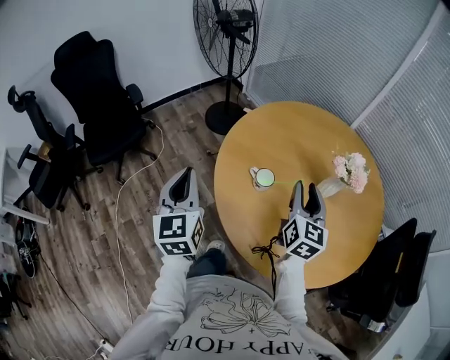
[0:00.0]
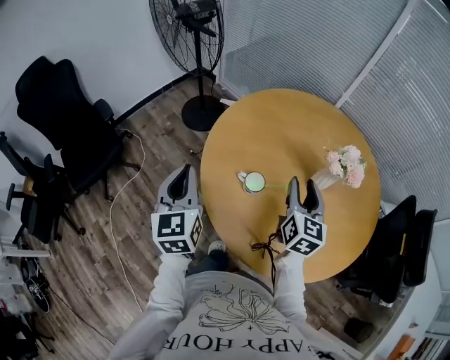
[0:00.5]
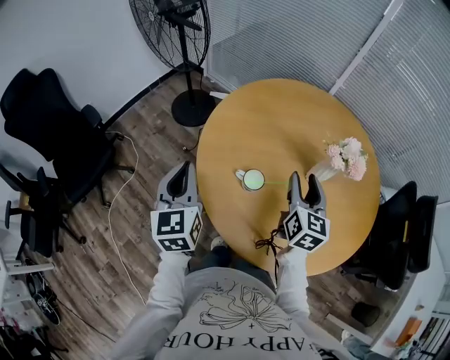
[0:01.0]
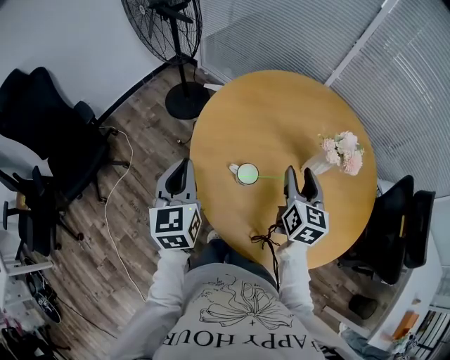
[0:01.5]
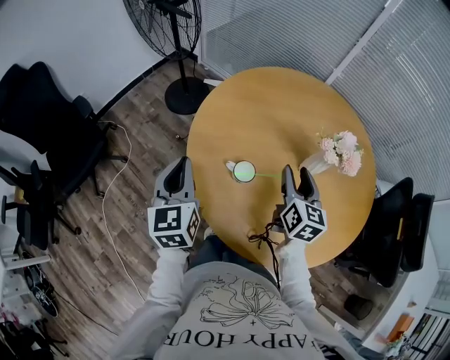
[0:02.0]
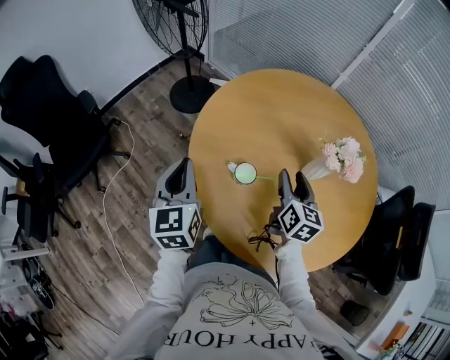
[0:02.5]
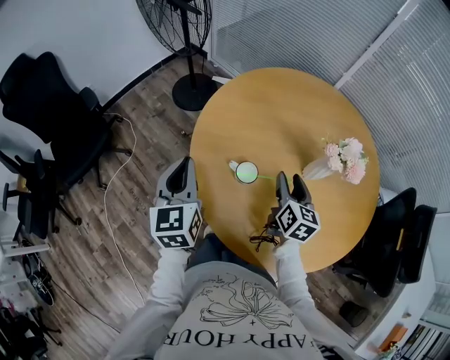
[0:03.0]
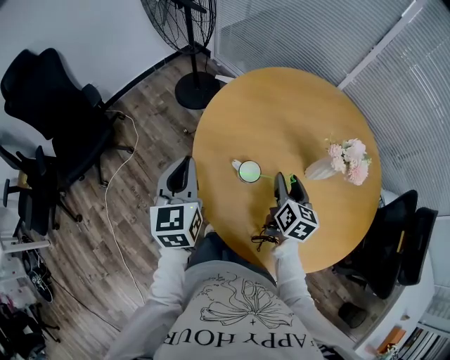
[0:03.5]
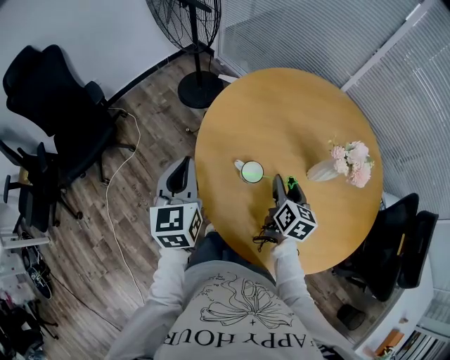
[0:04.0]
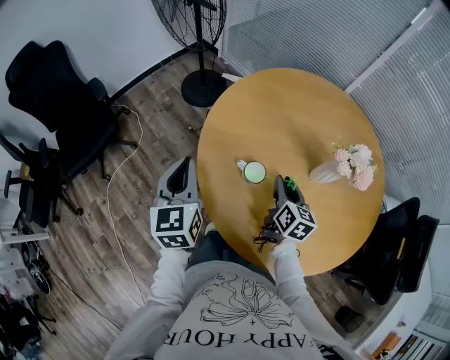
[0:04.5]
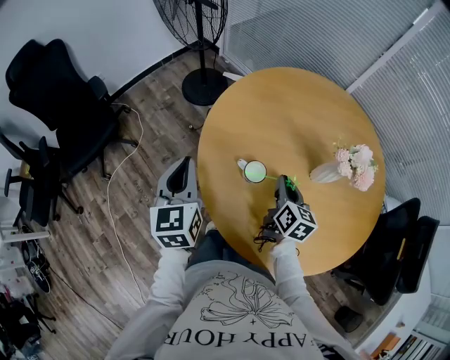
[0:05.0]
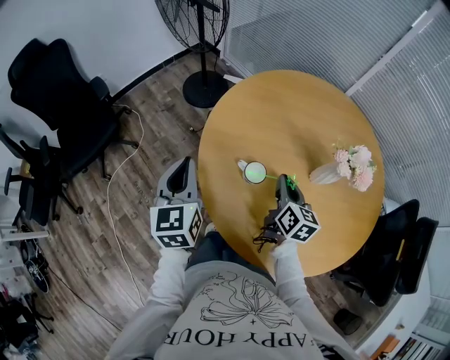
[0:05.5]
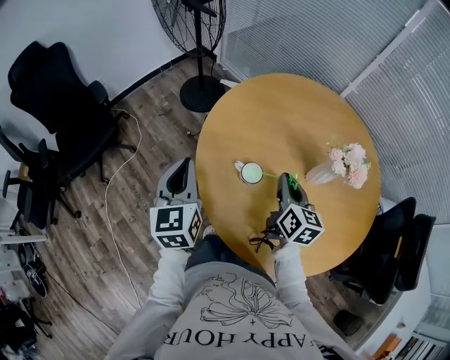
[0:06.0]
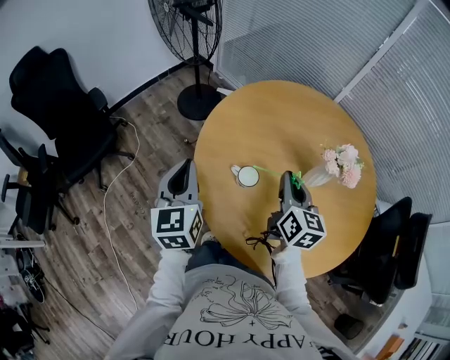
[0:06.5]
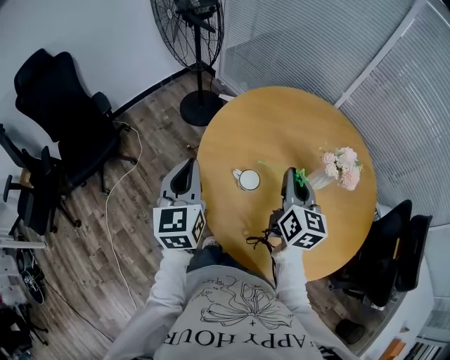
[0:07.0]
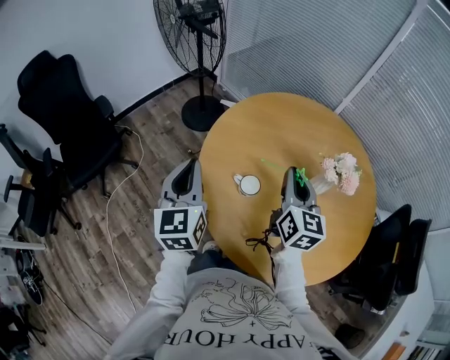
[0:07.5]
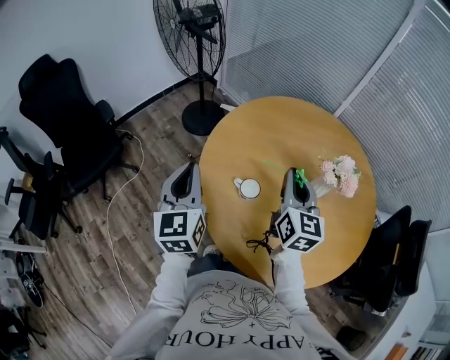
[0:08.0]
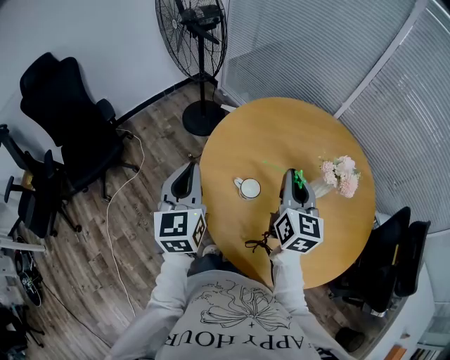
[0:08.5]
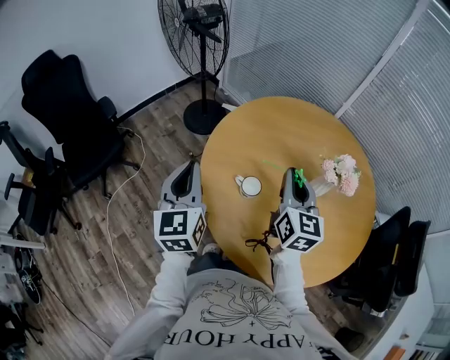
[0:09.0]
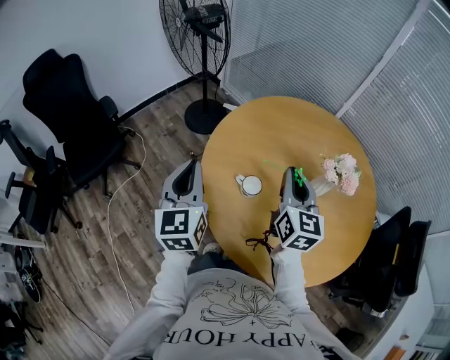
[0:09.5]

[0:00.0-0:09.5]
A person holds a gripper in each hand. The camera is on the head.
0:00.0 to 0:02.0: The right gripper heads forward and downward, covering approximately 10 cm, while the left gripper travels forward by about 15 cm.
0:02.0 to 0:04.0: The right gripper travels downward by approximately 10 cm.
0:04.0 to 0:05.5: The right gripper closes.
0:05.5 to 0:07.5: The right gripper shifts approximately 15 cm upward, and turns by about 20 degrees. The left gripper moves upward, approximately 5 cm.
0:07.5 to 0:09.5: The grippers make only small movements.

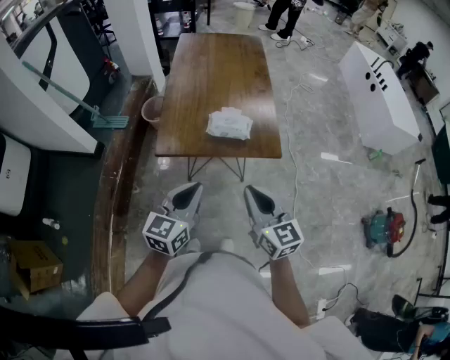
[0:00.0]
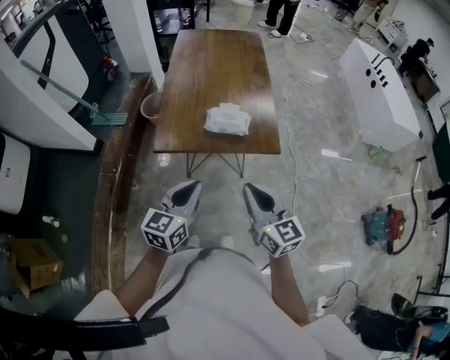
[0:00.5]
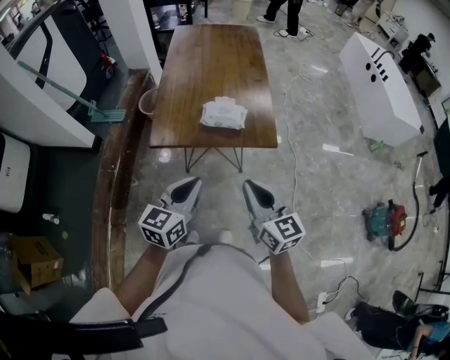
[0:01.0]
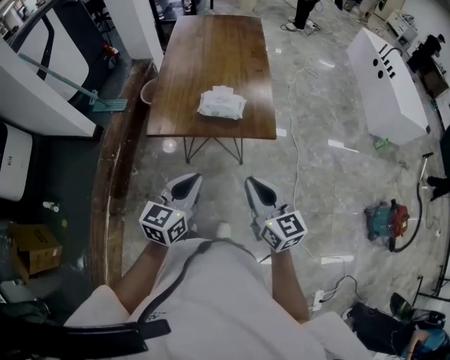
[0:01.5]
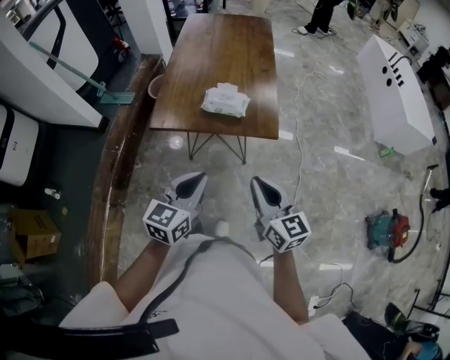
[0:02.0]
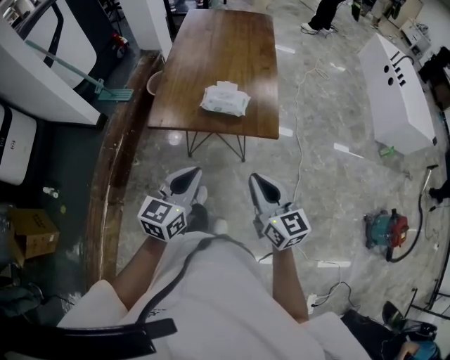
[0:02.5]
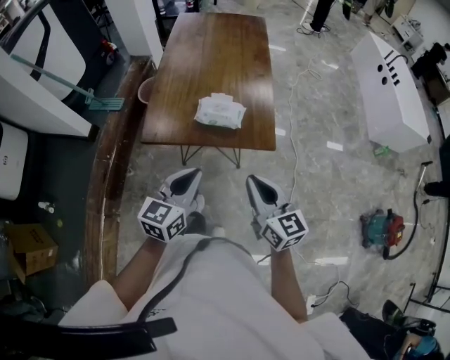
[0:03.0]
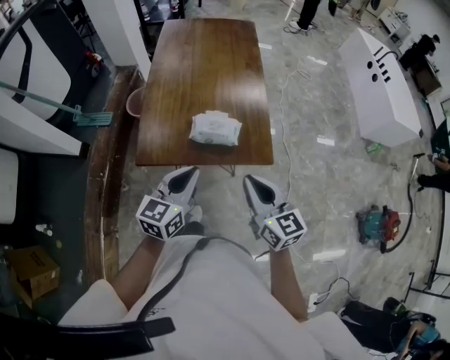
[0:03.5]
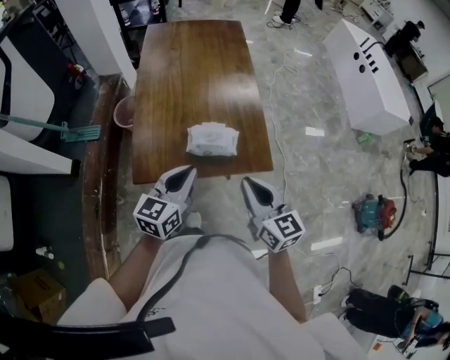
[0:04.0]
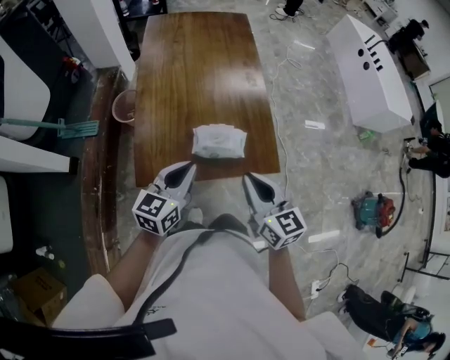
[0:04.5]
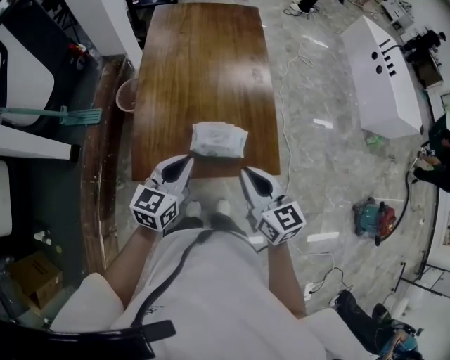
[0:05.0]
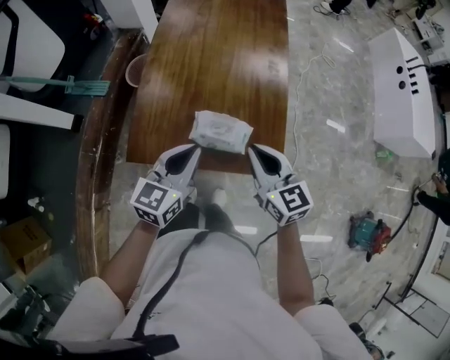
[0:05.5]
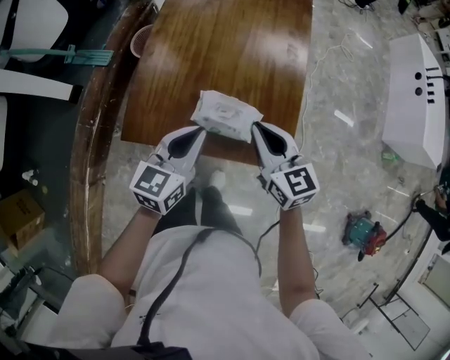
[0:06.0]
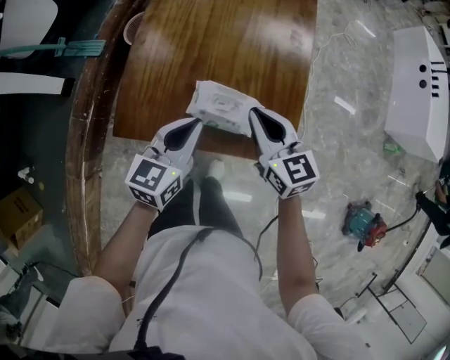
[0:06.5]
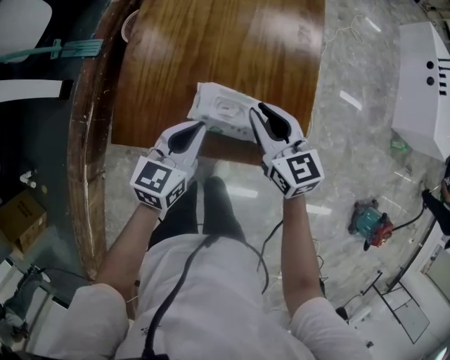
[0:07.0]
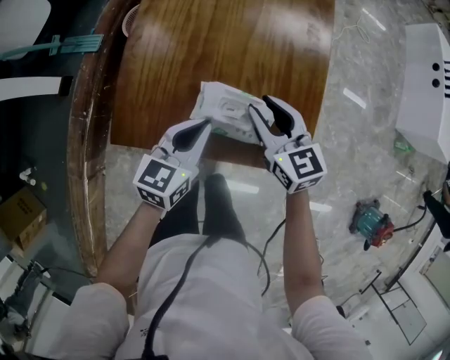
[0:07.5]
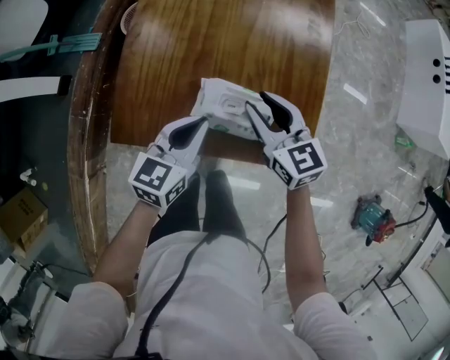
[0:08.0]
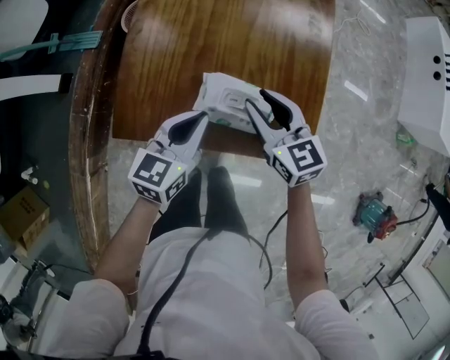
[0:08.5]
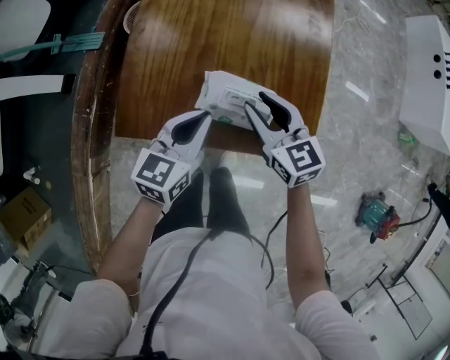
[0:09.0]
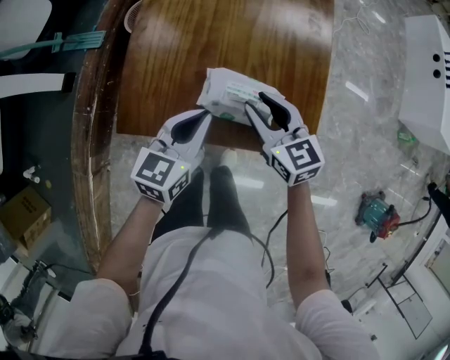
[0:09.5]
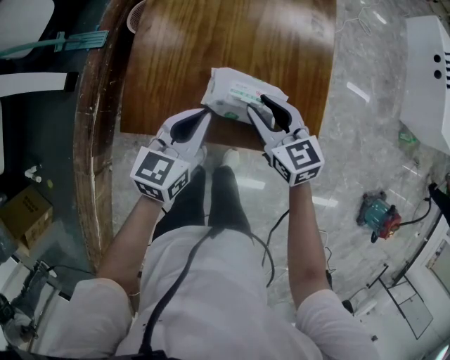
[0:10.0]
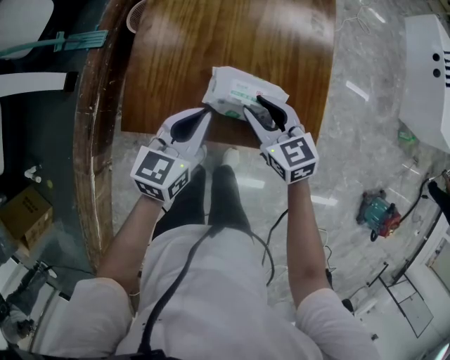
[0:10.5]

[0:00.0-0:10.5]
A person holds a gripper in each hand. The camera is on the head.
0:00.0 to 0:02.0: Both grippers move to the right, about 10 cm.
0:02.0 to 0:04.0: Both grippers move forward, roughly 25 cm.
0:04.0 to 0:06.5: The left gripper goes some 15 cm forward and downward; the right gripper heads forward and downward, covering roughly 25 cm, and turns by about 20 degrees.
0:06.5 to 0:08.5: The two grippers go roughly 5 cm downward. The right gripper opens its fingers.
0:08.5 to 0:10.5: The grippers move only a little.

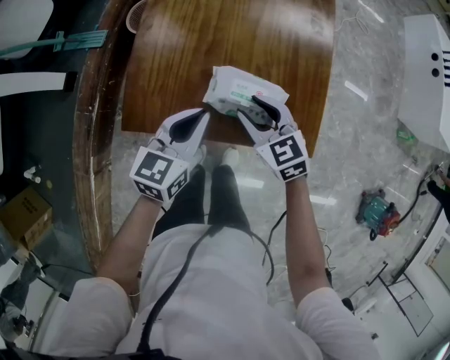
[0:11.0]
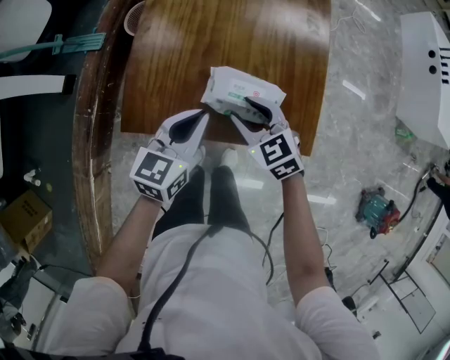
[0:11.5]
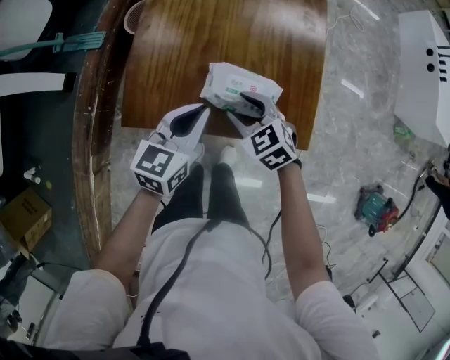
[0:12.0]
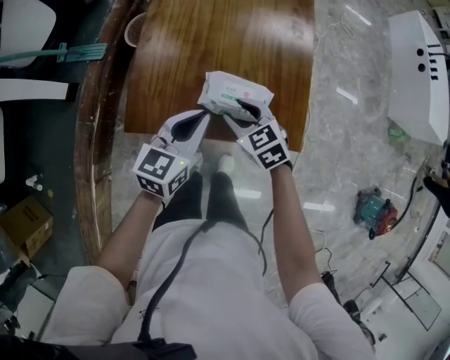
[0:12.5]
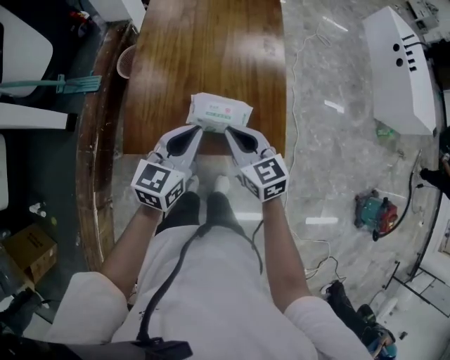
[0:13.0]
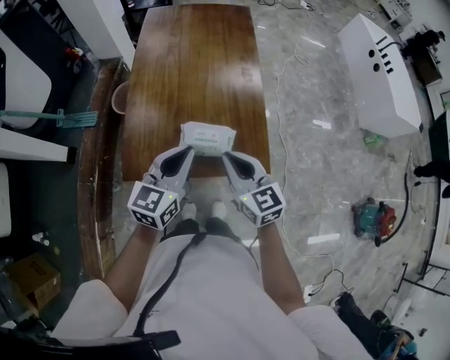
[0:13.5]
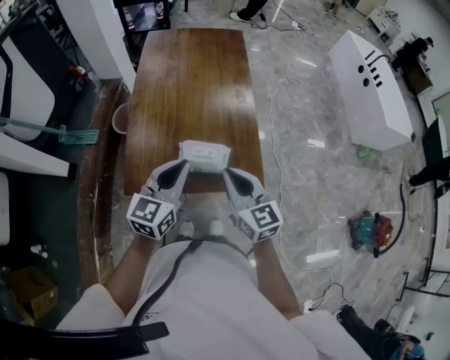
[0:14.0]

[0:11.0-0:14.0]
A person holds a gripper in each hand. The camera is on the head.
0:12.5 to 0:14.0: The grippers both shift upward by some 15 cm. The right gripper tilts its fingers approximately 30 degrees upward, and closes up.

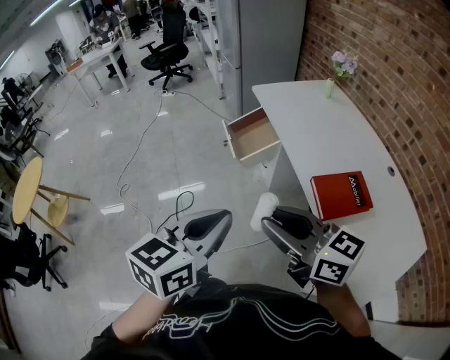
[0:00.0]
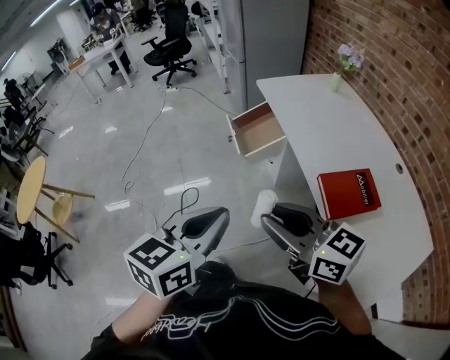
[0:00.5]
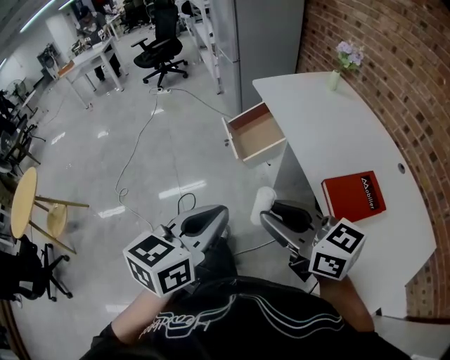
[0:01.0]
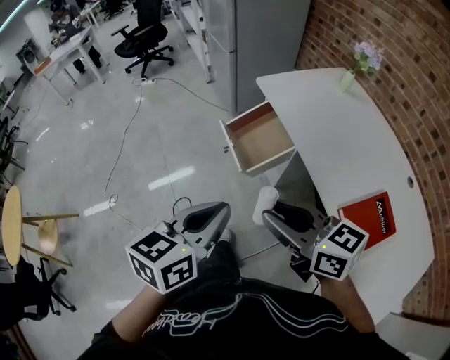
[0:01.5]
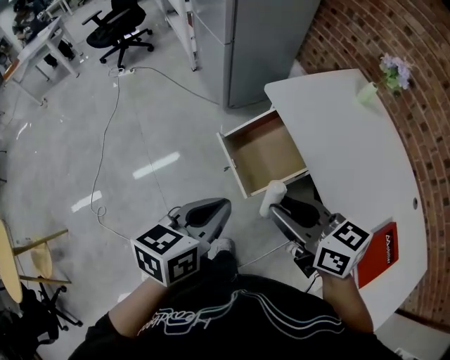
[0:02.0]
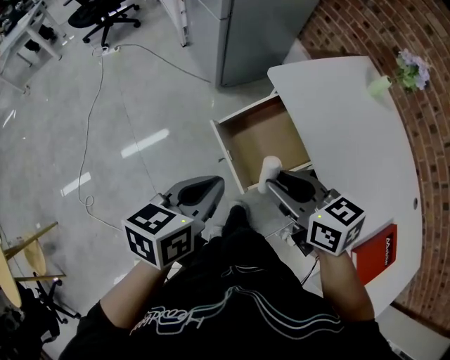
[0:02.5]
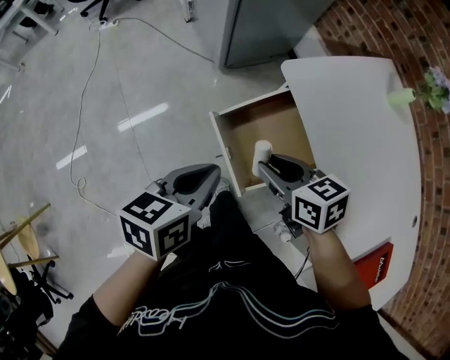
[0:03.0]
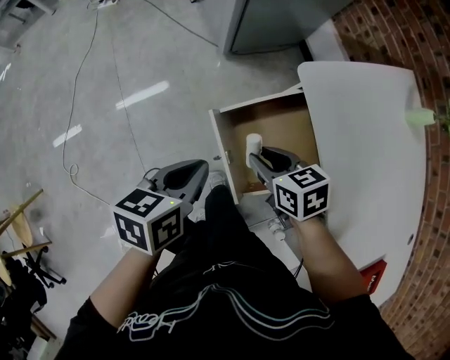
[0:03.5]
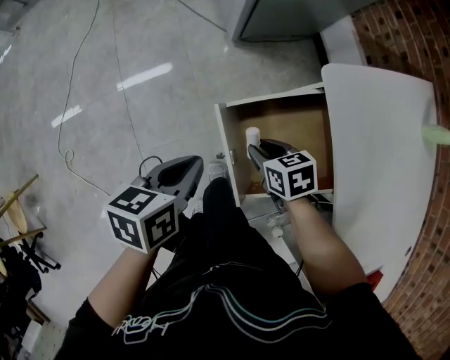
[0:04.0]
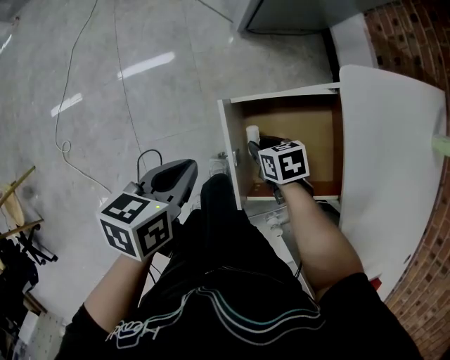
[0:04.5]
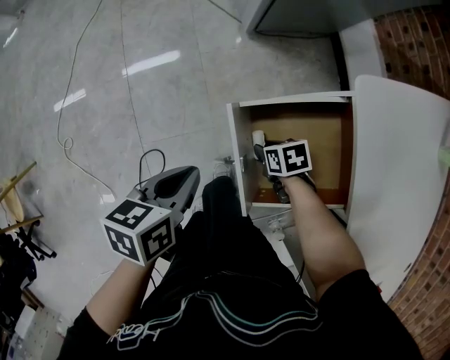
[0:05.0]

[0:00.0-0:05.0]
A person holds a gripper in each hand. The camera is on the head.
0:00.0 to 0:02.5: The pair of grippers is taken forward, some 60 cm. The left gripper swivels approximately 20 degrees. The right gripper swivels roughly 30 degrees.
0:02.5 to 0:05.0: The right gripper heads downward, covering about 40 cm, and tilts its fingers roughly 40 degrees downward; the left gripper is displaced downward by some 25 cm, and changes its angle by approximately 30 degrees.
